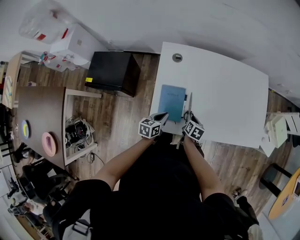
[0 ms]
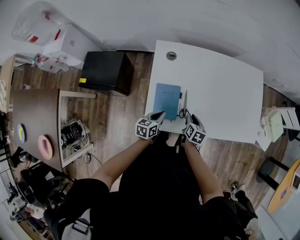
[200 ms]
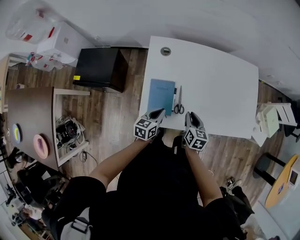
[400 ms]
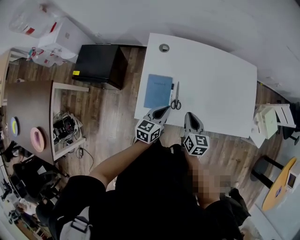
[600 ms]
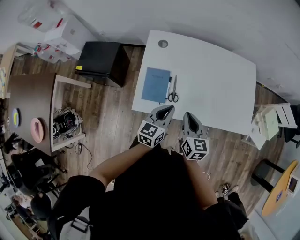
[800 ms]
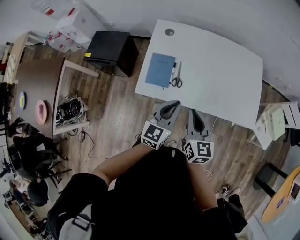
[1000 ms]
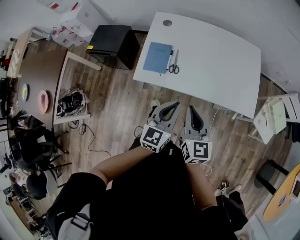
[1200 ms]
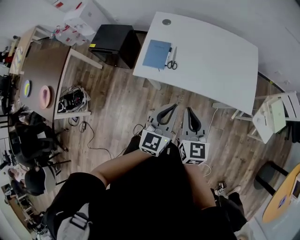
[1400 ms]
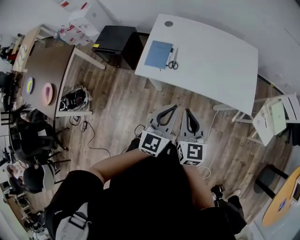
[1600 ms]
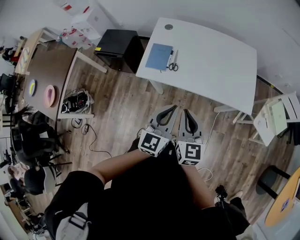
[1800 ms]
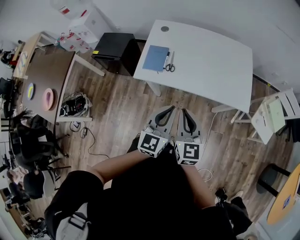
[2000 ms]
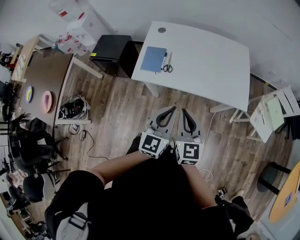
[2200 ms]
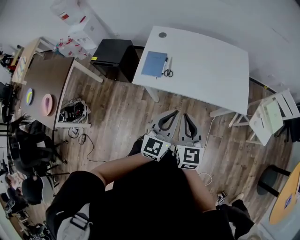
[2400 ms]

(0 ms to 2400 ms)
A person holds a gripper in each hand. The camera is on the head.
0 ms - 1200 ms: The right gripper travels upward, backward and to the right by roughly 40 cm, and points its fingers roughly 40 degrees further upward, while the left gripper travels upward, to the right and backward by roughly 35 cm, and swivels about 40 degrees.
1200 ms - 2400 ms: The left gripper moves backward and upward, some 10 cm. Meanwhile the right gripper moves backward, roughly 10 cm.

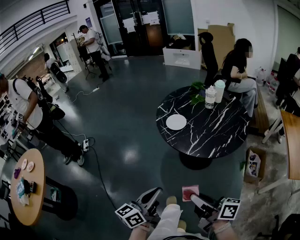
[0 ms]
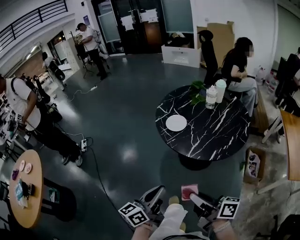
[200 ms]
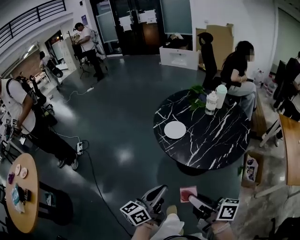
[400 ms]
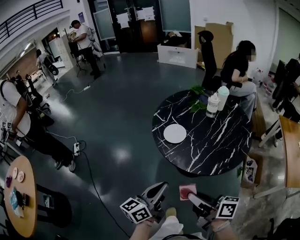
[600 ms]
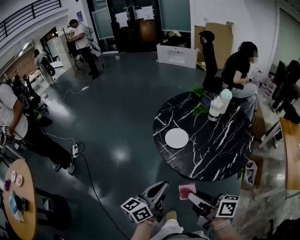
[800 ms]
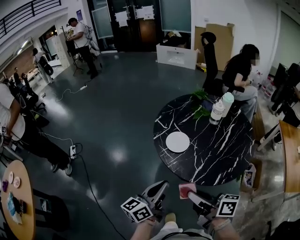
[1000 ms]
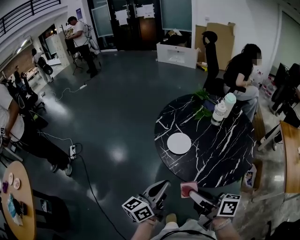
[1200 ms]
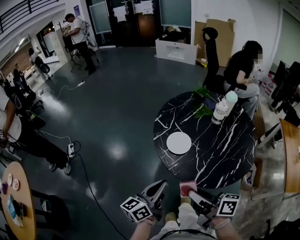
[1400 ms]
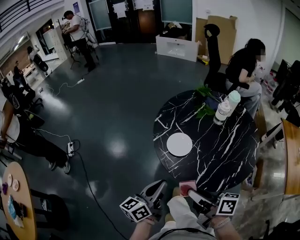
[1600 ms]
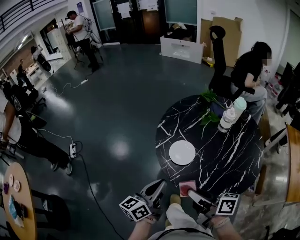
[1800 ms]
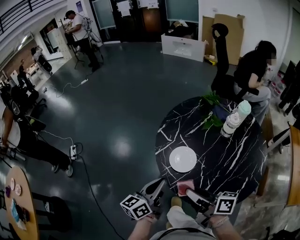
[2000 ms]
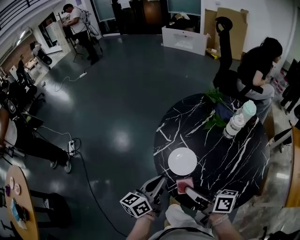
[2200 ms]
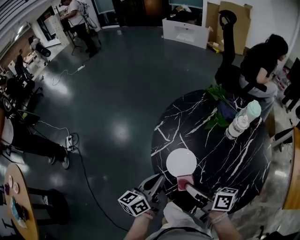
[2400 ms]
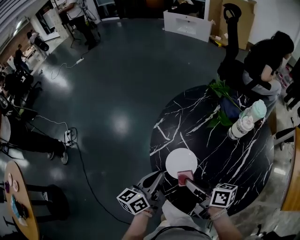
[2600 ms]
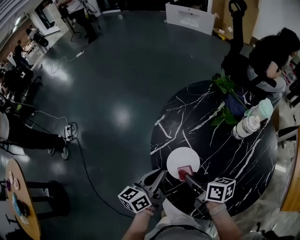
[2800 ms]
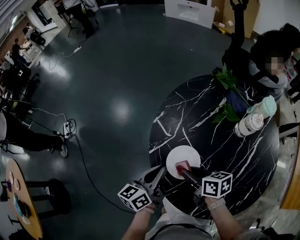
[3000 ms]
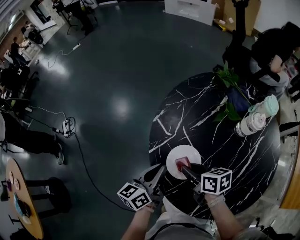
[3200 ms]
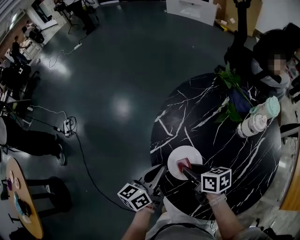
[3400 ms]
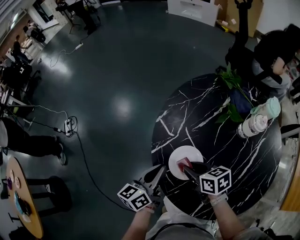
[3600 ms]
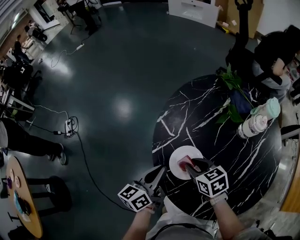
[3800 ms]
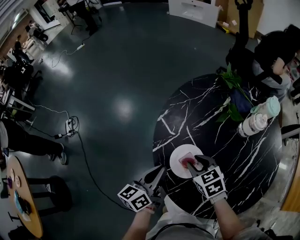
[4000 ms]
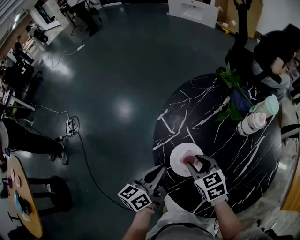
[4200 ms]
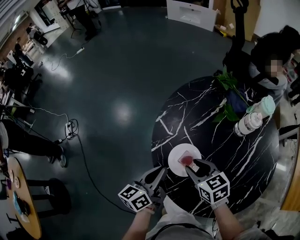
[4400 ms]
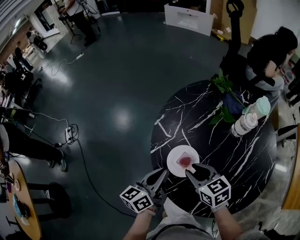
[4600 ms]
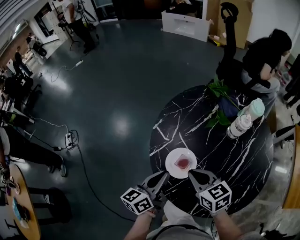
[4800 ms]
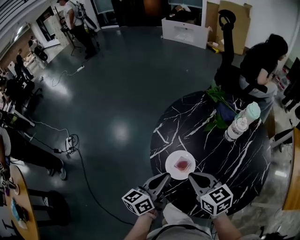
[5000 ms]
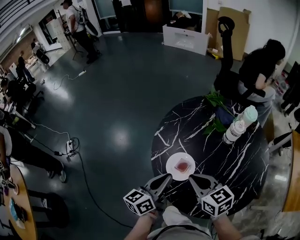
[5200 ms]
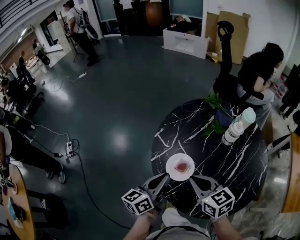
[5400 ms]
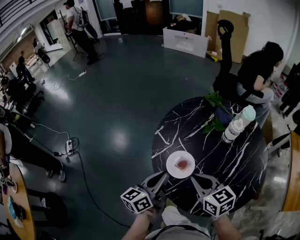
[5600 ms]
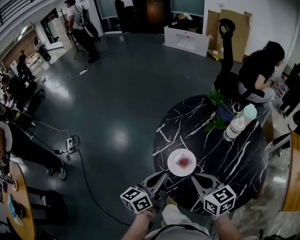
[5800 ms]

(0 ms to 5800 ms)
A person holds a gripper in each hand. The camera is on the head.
0 ms - 1400 ms: Both grippers move forward, approximately 25 cm.
1400 ms - 2800 ms: The two grippers go about 30 cm forward and downward. The right gripper rotates approximately 30 degrees.
2800 ms - 4400 ms: The right gripper turns by about 40 degrees.
4400 ms - 5800 ms: The left gripper goes some 5 cm upward, while the right gripper shifts roughly 15 cm upward and backward, and closes its fingers.

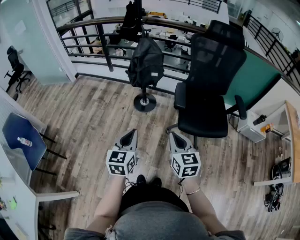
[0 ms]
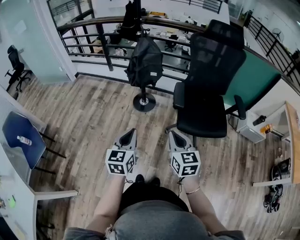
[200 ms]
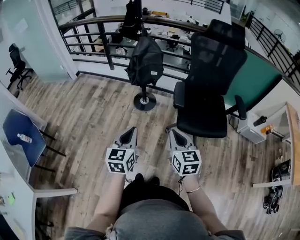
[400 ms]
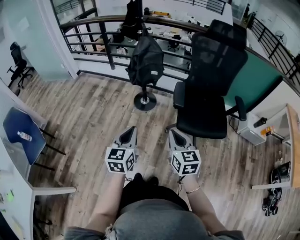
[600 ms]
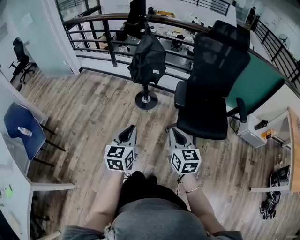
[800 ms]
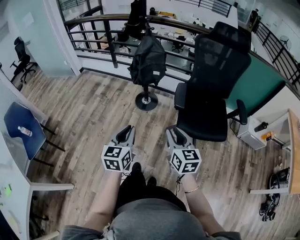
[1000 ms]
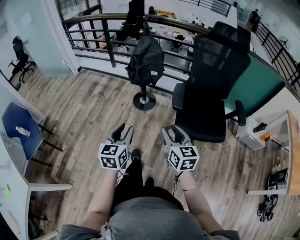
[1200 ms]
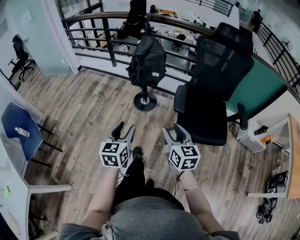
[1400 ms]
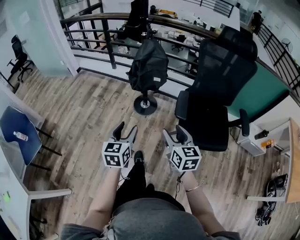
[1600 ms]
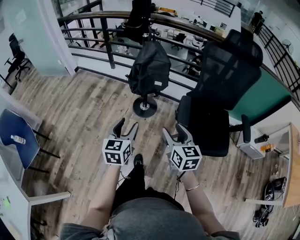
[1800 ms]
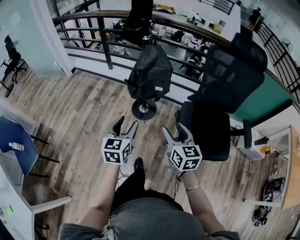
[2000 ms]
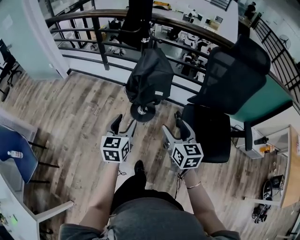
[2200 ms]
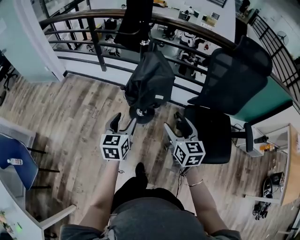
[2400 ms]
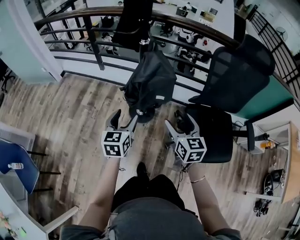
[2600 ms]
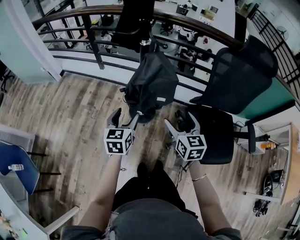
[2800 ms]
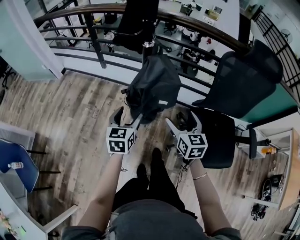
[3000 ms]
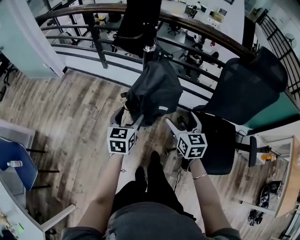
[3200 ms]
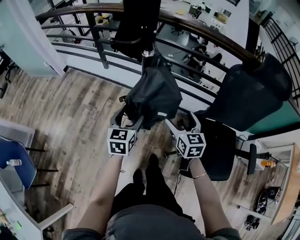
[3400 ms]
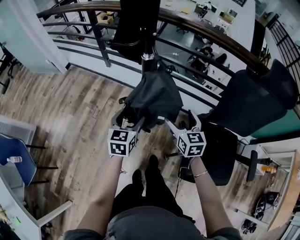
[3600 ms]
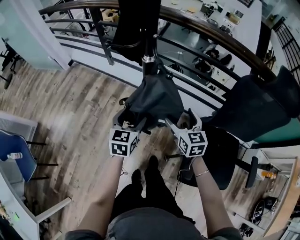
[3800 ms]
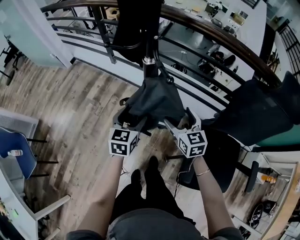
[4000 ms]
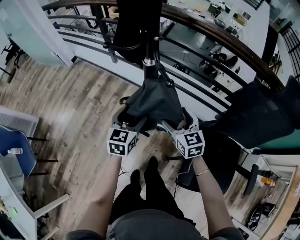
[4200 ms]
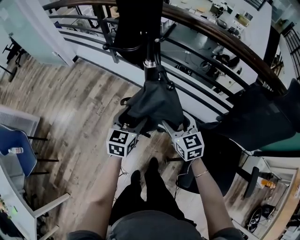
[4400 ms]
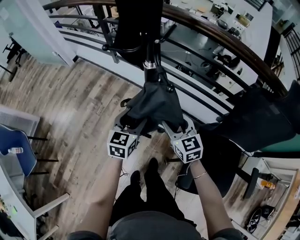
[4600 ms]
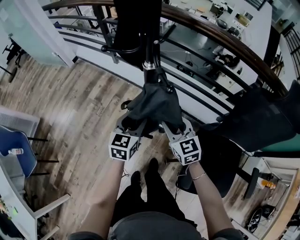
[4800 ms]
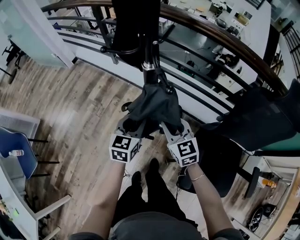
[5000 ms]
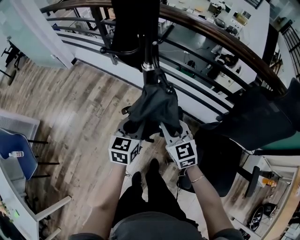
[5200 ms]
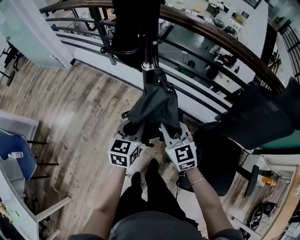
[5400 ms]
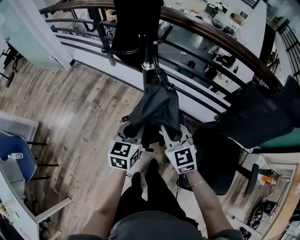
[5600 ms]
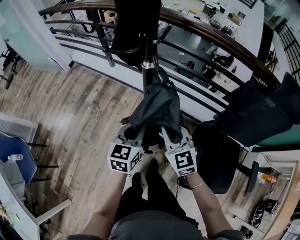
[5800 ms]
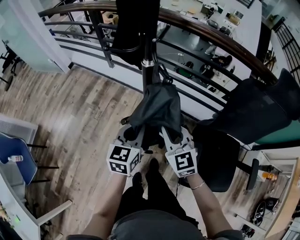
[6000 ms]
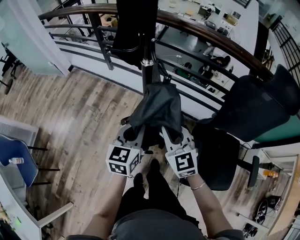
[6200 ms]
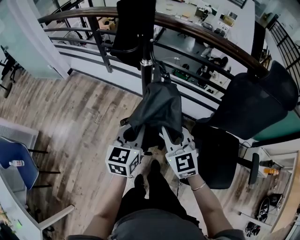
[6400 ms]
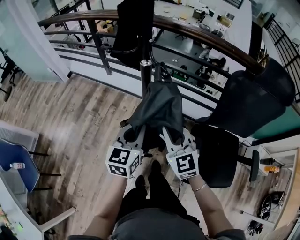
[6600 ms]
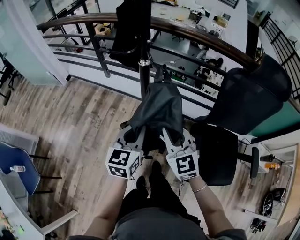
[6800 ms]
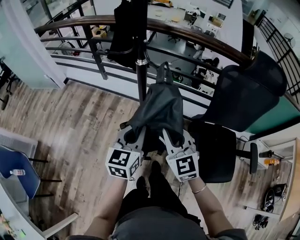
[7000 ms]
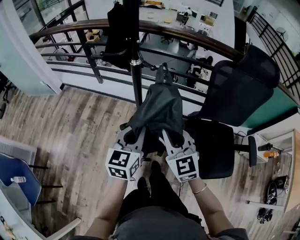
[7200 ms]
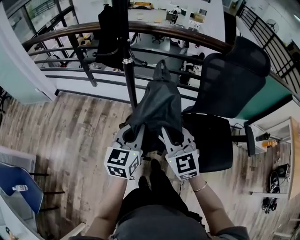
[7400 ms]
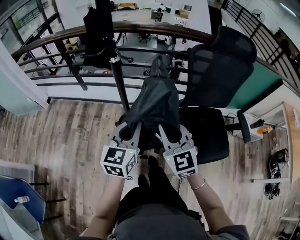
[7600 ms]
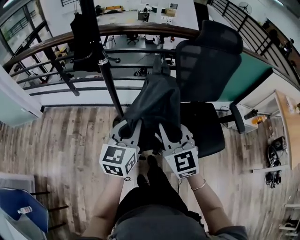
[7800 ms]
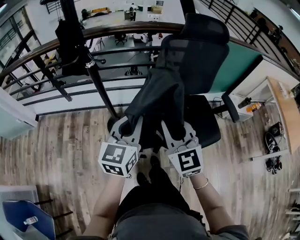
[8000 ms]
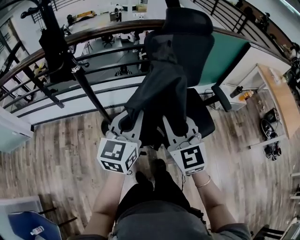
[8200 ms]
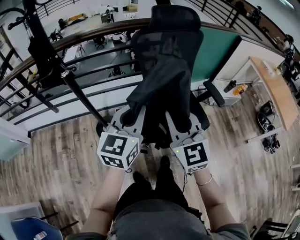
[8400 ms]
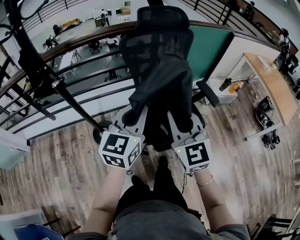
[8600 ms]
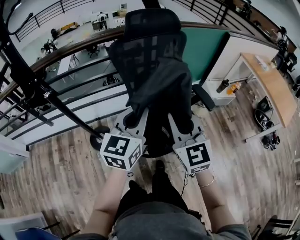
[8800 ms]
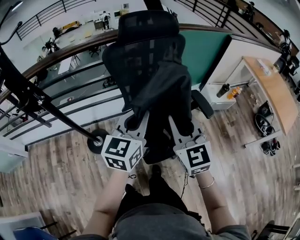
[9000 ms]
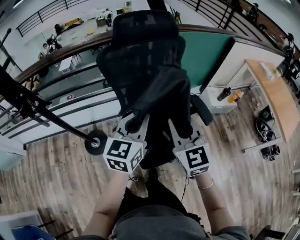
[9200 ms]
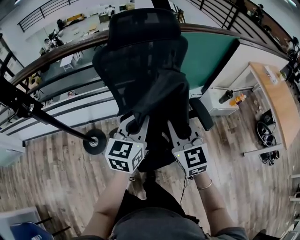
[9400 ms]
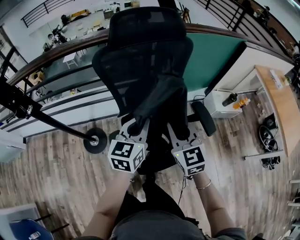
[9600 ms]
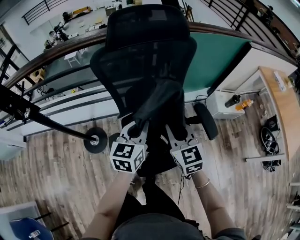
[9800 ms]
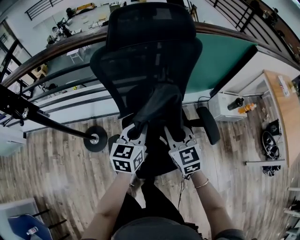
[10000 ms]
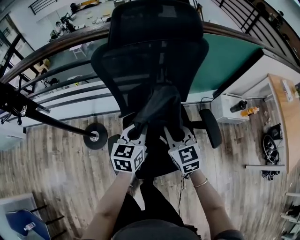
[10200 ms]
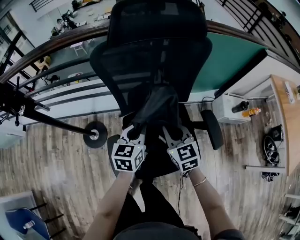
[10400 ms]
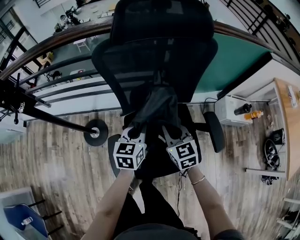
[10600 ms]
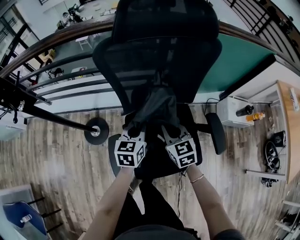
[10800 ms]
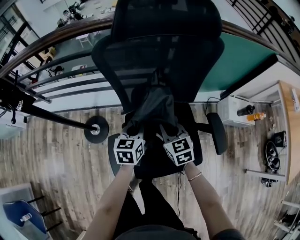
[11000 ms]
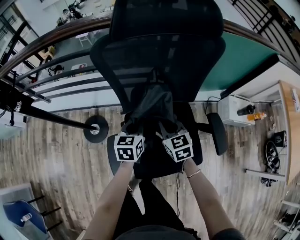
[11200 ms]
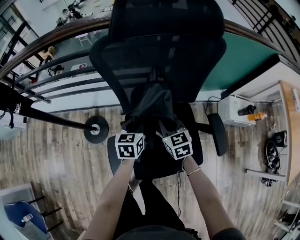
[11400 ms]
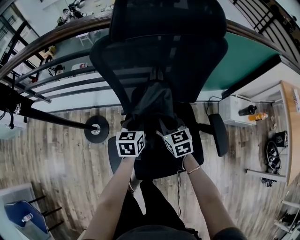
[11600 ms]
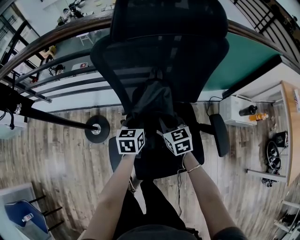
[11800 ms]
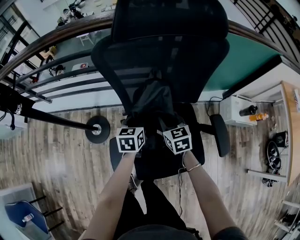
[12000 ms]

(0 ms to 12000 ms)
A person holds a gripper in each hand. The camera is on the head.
0 ms - 1600 ms: Both grippers travel together forward, some 10 cm. The right gripper opens its fingers, while the left gripper opens its fingers.
1600 ms - 3000 ms: The two grippers go about 30 cm forward. The right gripper opens.
3000 ms - 4400 ms: Both grippers travel together forward, roughly 15 cm. The right gripper rotates approximately 30 degrees.
4400 ms - 6000 ms: The right gripper travels backward and upward by some 10 cm, and closes. The left gripper travels backward by about 5 cm, and closes its fingers.
6000 ms - 7600 ms: The right gripper travels backward and upward by roughly 15 cm, and turns by roughly 20 degrees; the left gripper is displaced backward, upward and to the right by roughly 15 cm, and changes its angle by approximately 20 degrees.
7600 ms - 9000 ms: The left gripper shifts by roughly 35 cm, and turns by about 30 degrees, while the right gripper moves about 35 cm, and changes its angle by roughly 30 degrees.
9000 ms - 10400 ms: Both grippers travel together downward and forward, roughly 25 cm. The left gripper changes its angle by some 30 degrees. Meanwhile the right gripper changes its angle by some 20 degrees.
10400 ms - 12000 ms: The two grippers go approximately 15 cm downward and forward.

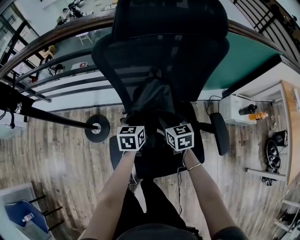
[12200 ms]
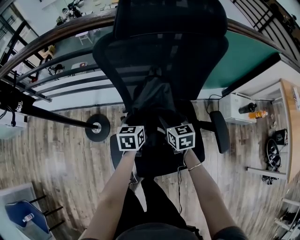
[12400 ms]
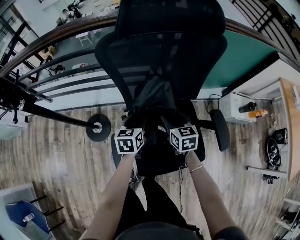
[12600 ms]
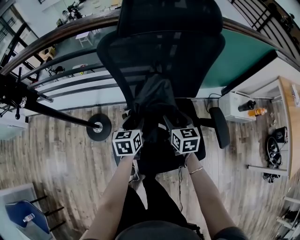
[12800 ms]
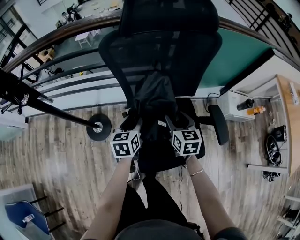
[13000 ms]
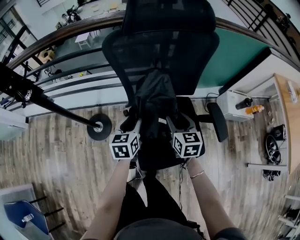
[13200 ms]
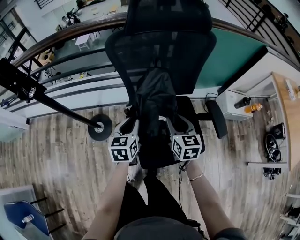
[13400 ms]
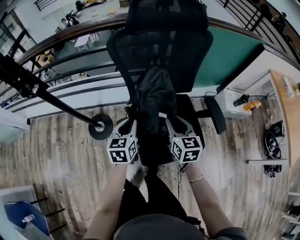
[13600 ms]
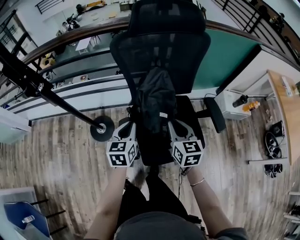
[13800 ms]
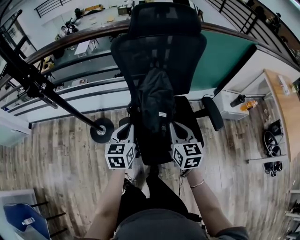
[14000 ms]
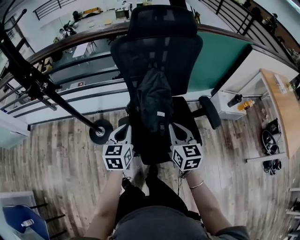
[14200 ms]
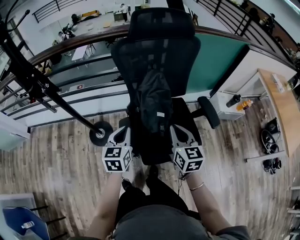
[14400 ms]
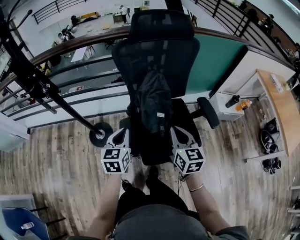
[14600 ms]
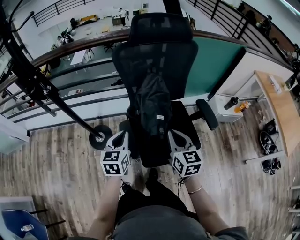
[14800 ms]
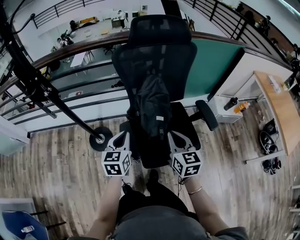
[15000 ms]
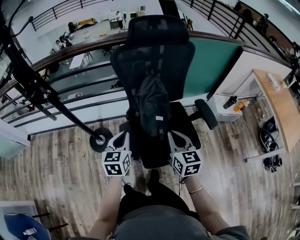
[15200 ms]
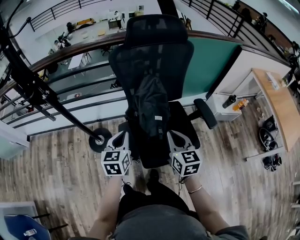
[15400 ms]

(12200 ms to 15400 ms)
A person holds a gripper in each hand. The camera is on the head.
12200 ms - 13800 ms: The grippers both shift backward and upward by some 20 cm.
13800 ms - 15400 ms: Both grippers move backward, roughly 5 cm.
